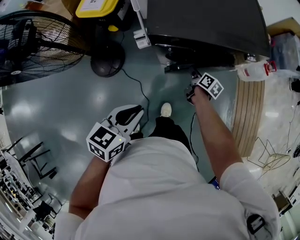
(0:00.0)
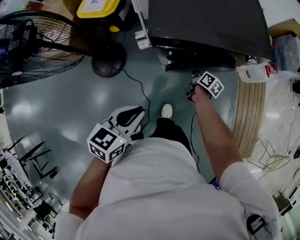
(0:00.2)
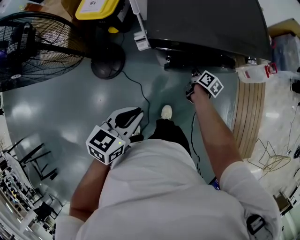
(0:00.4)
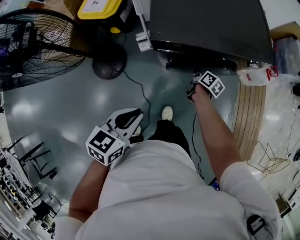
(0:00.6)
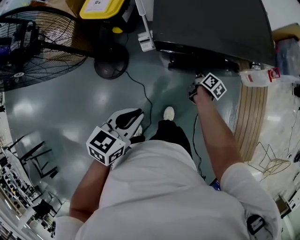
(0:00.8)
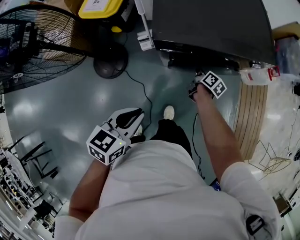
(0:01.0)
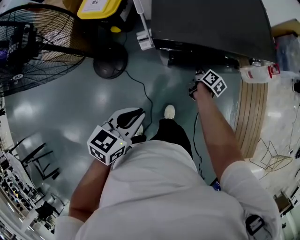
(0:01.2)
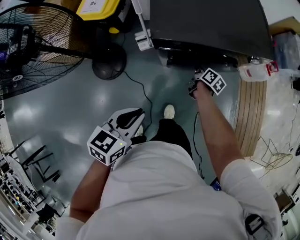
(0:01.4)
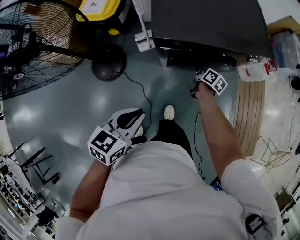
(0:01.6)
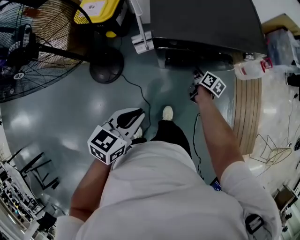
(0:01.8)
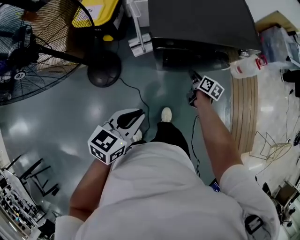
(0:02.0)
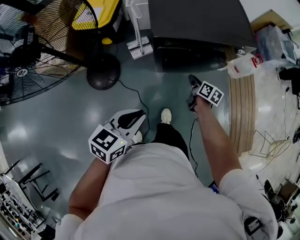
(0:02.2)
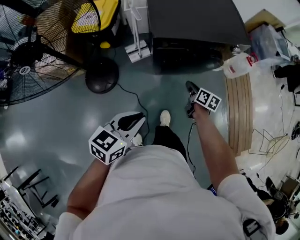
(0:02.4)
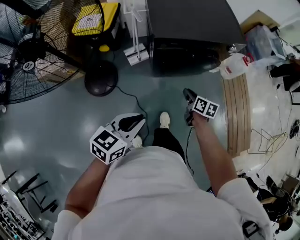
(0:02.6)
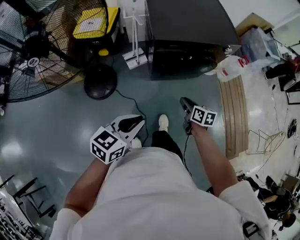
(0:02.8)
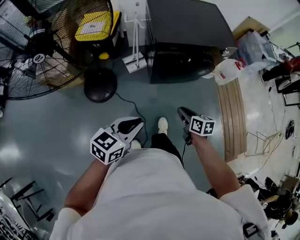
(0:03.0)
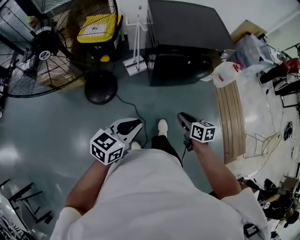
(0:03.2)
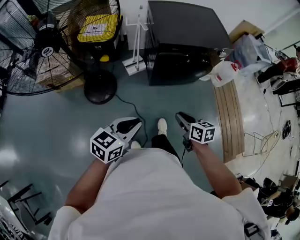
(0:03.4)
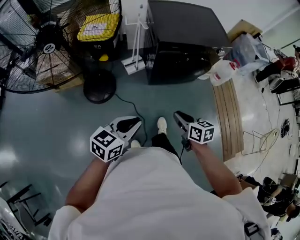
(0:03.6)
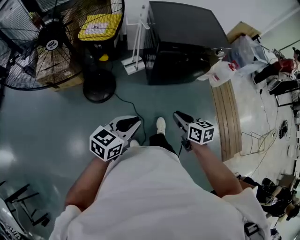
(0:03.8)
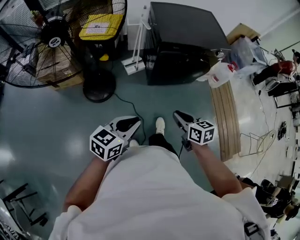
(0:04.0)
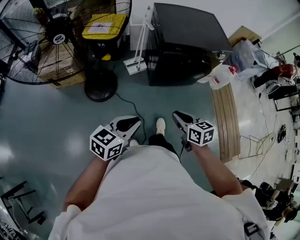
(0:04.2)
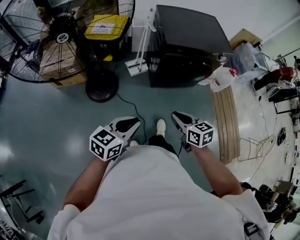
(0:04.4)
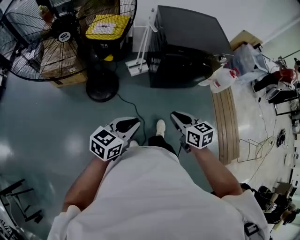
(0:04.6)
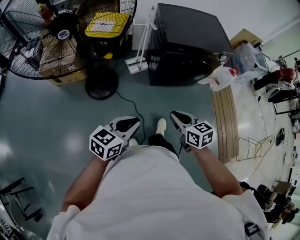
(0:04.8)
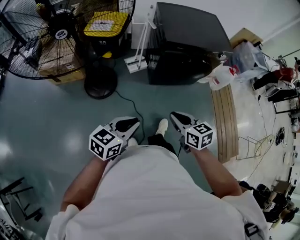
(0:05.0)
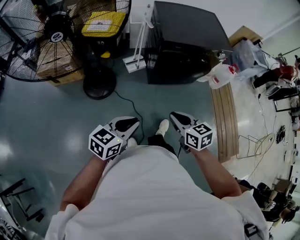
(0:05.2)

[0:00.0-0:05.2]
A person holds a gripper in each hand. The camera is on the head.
0:00.0 to 0:01.8: The grippers stay close to where they were, moving slightly.
0:01.8 to 0:03.4: The right gripper is displaced backward and upward by roughly 40 cm, and swivels about 30 degrees. The left gripper shifts some 20 cm backward.
0:03.4 to 0:05.2: The right gripper heads to the left, upward and backward, covering roughly 10 cm; the left gripper goes approximately 5 cm backward.

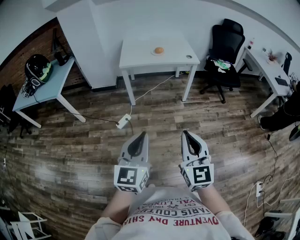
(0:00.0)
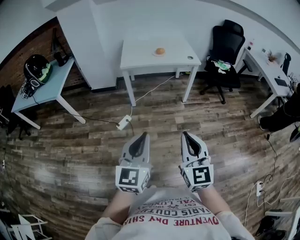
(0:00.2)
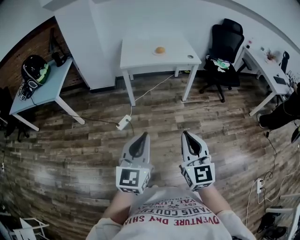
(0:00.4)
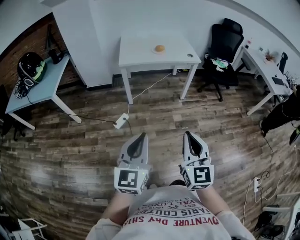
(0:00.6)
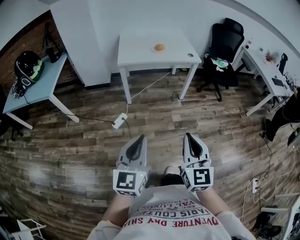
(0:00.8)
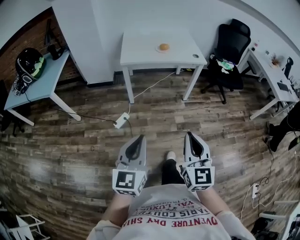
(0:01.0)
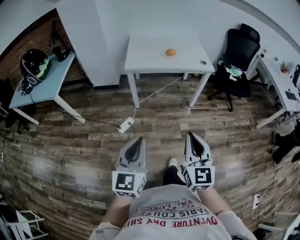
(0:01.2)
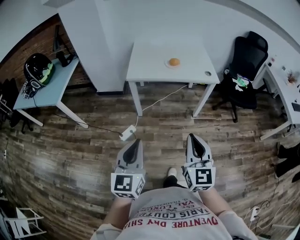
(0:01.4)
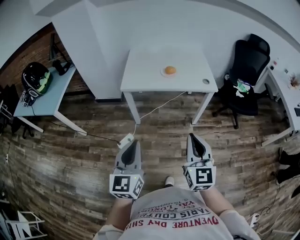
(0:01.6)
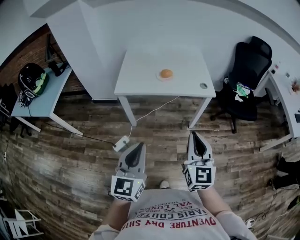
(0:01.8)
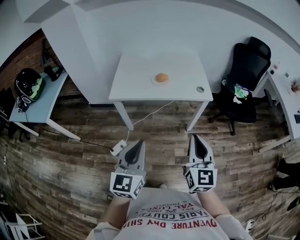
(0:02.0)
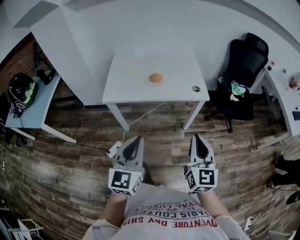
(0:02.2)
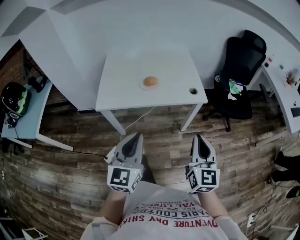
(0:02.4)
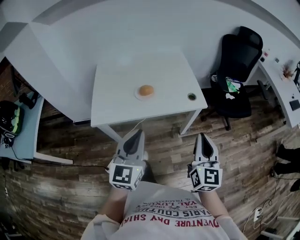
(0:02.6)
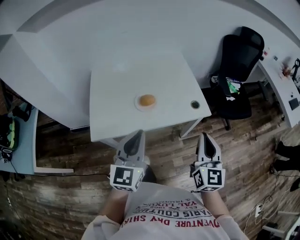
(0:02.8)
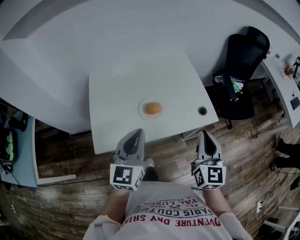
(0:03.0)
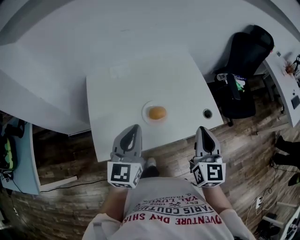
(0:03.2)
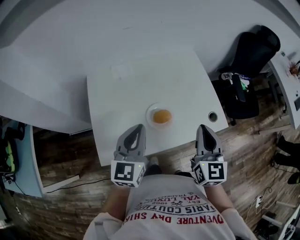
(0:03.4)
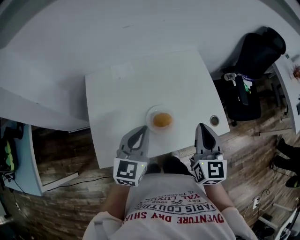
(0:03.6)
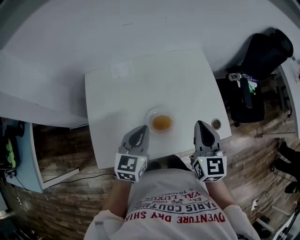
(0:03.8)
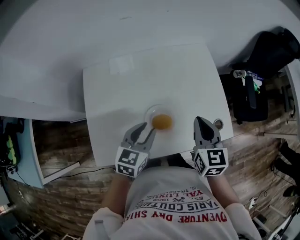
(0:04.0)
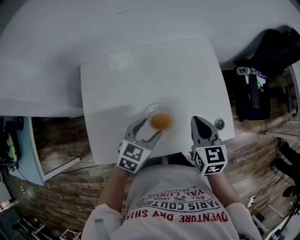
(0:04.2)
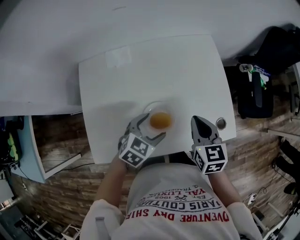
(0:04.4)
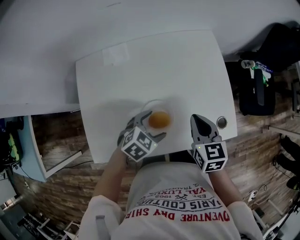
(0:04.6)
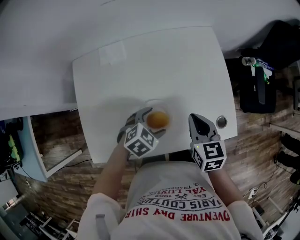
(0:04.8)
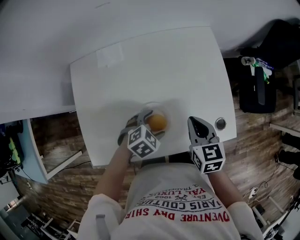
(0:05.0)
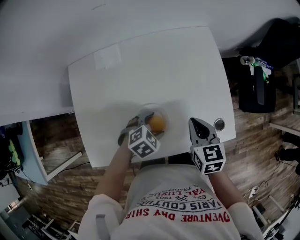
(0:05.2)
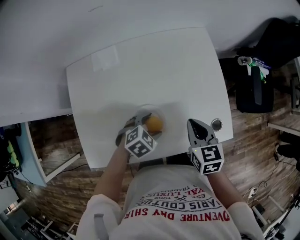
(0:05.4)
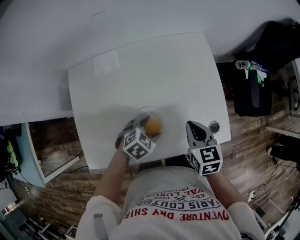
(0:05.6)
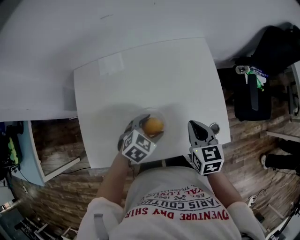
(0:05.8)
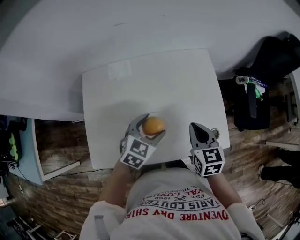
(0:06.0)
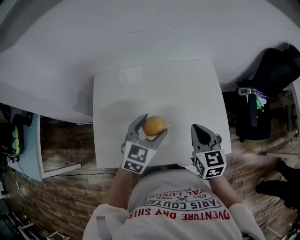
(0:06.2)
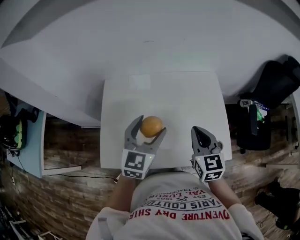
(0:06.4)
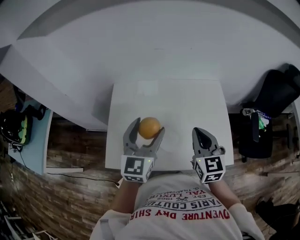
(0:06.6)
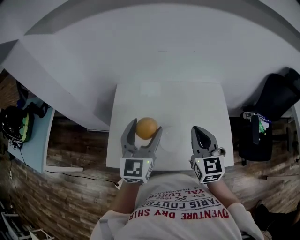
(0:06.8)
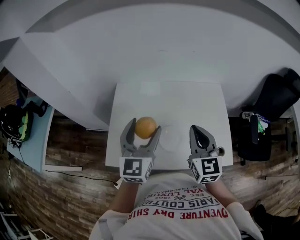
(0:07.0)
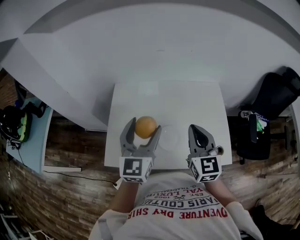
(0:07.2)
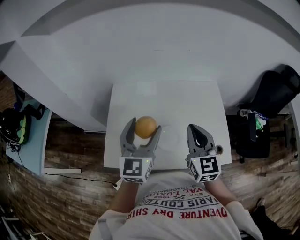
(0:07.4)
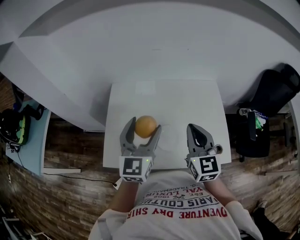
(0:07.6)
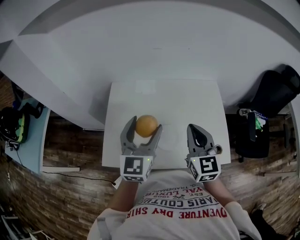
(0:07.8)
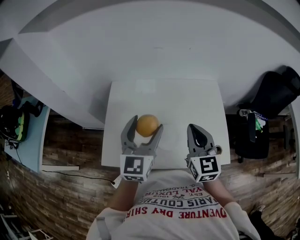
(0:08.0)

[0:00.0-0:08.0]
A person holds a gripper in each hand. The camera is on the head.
0:00.0 to 0:01.6: The two grippers go approximately 30 cm forward.
0:01.6 to 0:03.2: The two grippers travel together, forward, some 50 cm. The right gripper changes its angle by approximately 20 degrees. The left gripper turns by some 20 degrees.
0:03.2 to 0:04.8: The left gripper moves downward and forward, some 30 cm, angles its fingers downward, by some 50 degrees, and opens up. Meanwhile the right gripper is displaced forward and downward by about 25 cm, and turns by some 40 degrees.
0:04.8 to 0:06.4: The right gripper travels upward by approximately 10 cm, and turns by roughly 20 degrees, while the left gripper goes about 25 cm upward, and tips its fingers upward by some 40 degrees.
0:06.4 to 0:08.0: Both grippers travel together upward, about 5 cm.

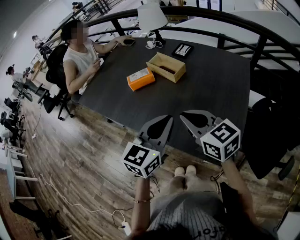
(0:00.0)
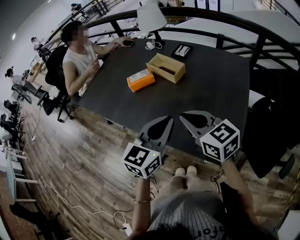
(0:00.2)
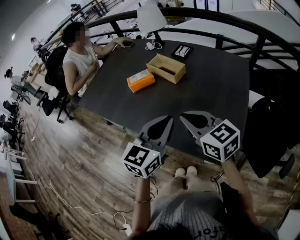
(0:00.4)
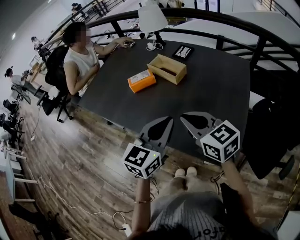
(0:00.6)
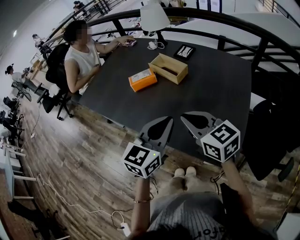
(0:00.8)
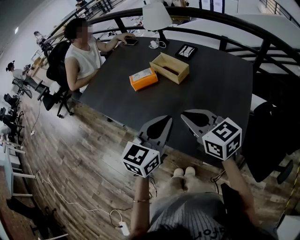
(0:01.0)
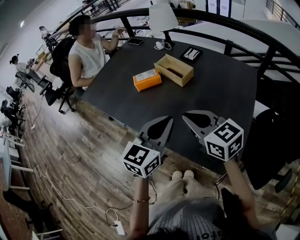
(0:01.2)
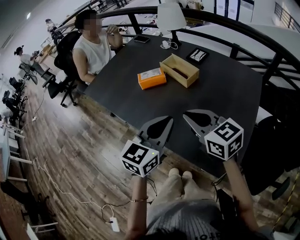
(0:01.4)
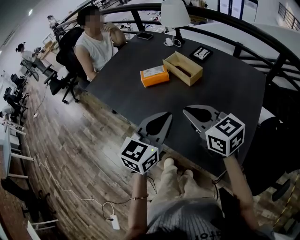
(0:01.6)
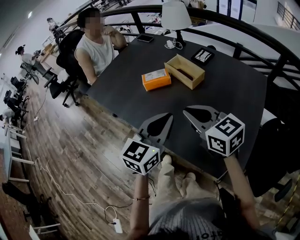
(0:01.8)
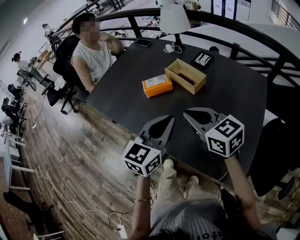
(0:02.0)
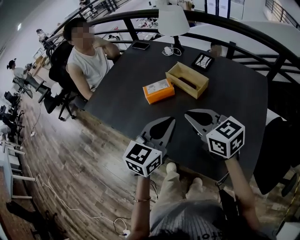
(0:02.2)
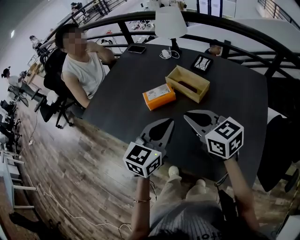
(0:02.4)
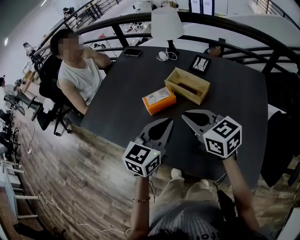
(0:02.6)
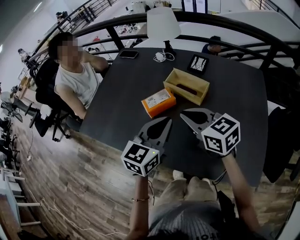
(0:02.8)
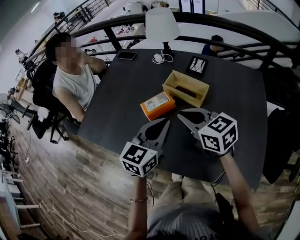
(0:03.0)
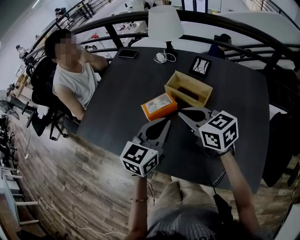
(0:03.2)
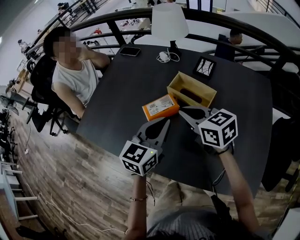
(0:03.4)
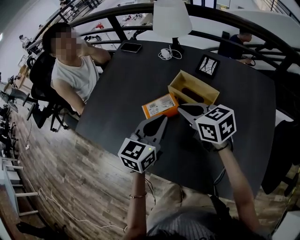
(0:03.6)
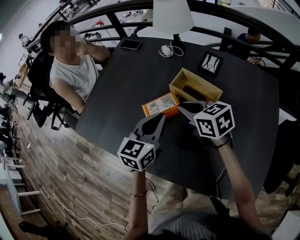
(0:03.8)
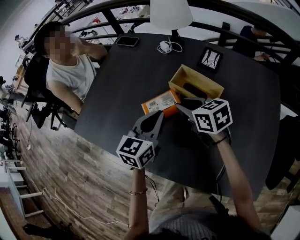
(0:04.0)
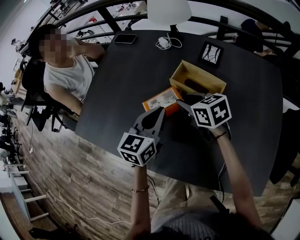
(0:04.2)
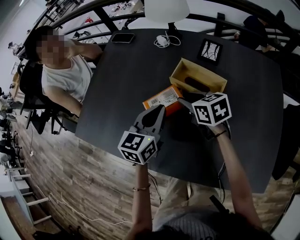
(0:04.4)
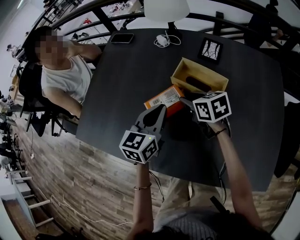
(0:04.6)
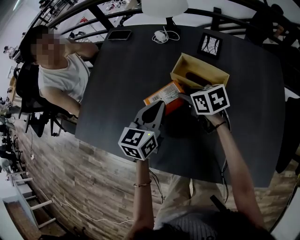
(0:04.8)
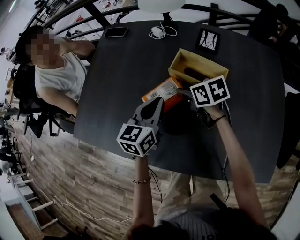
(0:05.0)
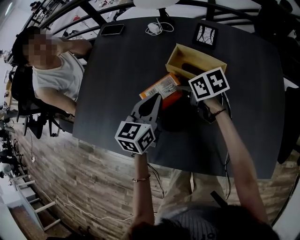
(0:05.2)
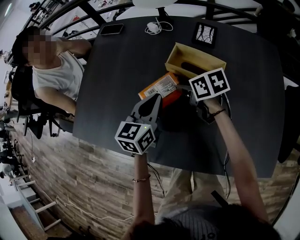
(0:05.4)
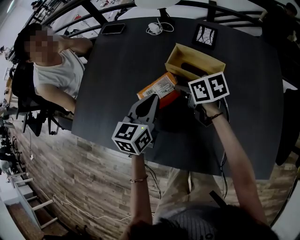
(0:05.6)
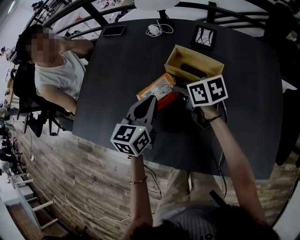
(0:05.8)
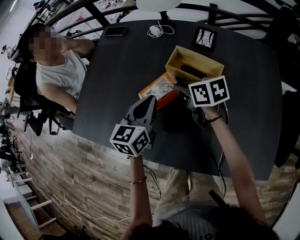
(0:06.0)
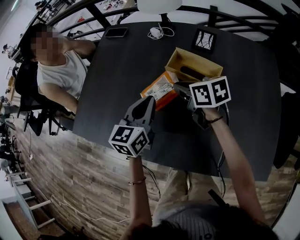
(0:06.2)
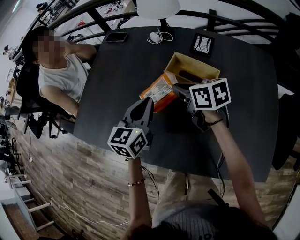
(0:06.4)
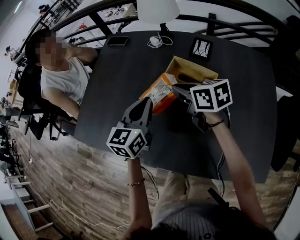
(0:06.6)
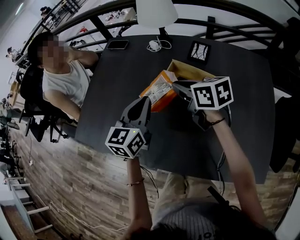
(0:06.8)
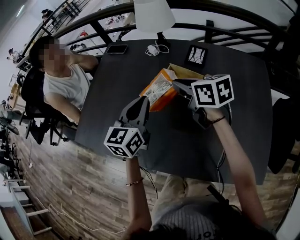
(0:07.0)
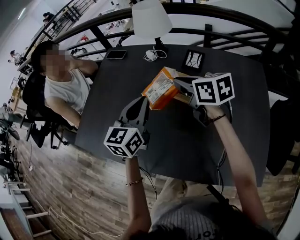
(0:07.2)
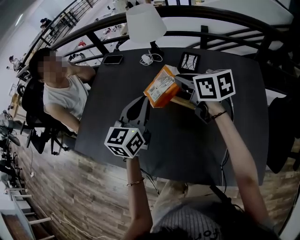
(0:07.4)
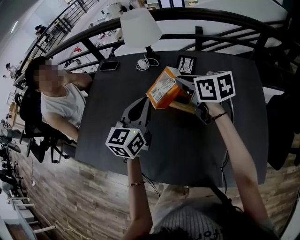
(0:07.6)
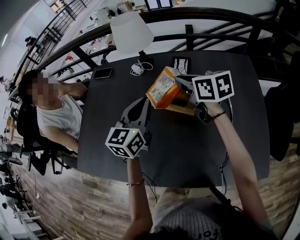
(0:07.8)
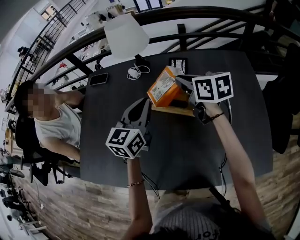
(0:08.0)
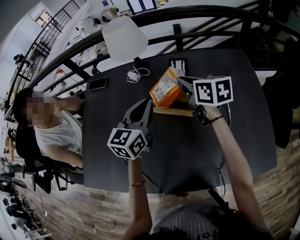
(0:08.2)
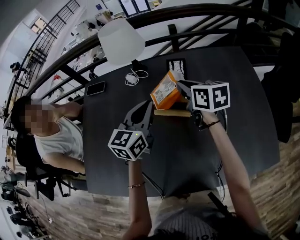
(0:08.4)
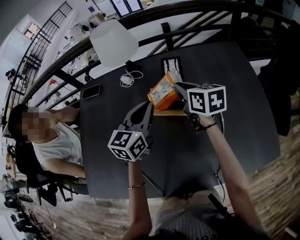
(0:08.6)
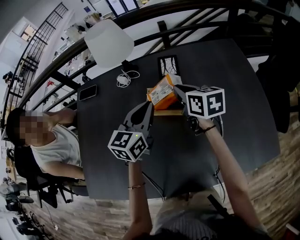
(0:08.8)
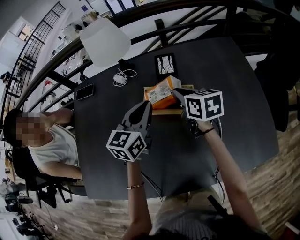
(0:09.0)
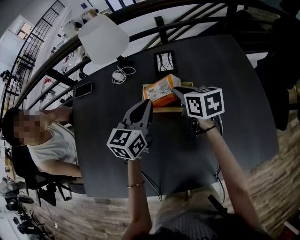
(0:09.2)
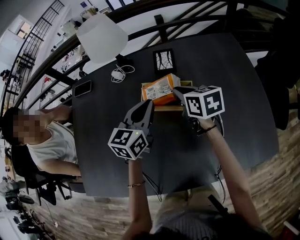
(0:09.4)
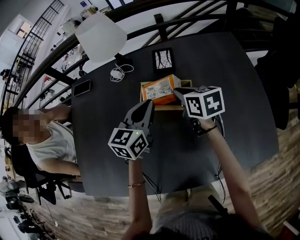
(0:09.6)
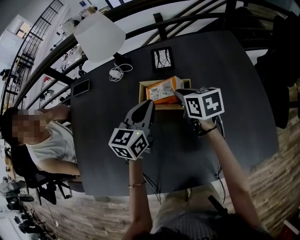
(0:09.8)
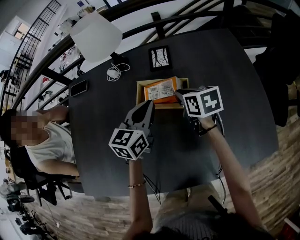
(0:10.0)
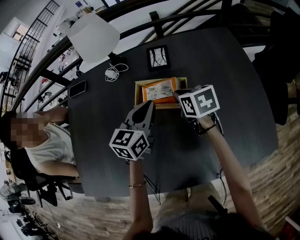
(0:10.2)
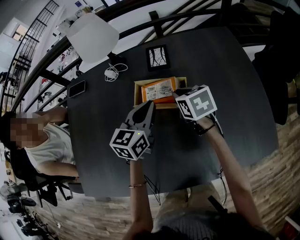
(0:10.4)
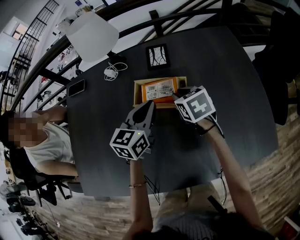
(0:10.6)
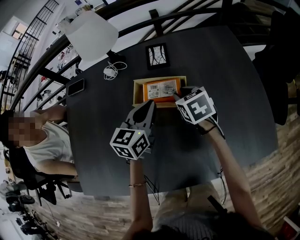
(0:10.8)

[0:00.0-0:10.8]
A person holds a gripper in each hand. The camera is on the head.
0:00.0 to 0:01.6: The right gripper ends up about 5 cm from where it was. Meanwhile the left gripper ends up roughly 5 cm from where it was.
0:01.6 to 0:03.0: Both grippers move forward and to the left, some 20 cm.
0:03.0 to 0:04.6: The right gripper is displaced downward and forward by roughly 20 cm, turns by roughly 30 degrees, and opens, while the left gripper is displaced forward and downward by some 15 cm.
0:04.6 to 0:06.2: The right gripper closes.
0:06.2 to 0:07.8: The left gripper goes some 15 cm upward, to the right and forward. The right gripper travels to the right, upward and forward by roughly 15 cm.
0:07.8 to 0:09.2: The right gripper is displaced downward by some 10 cm, and rotates some 20 degrees, while the left gripper shifts roughly 5 cm downward.
0:09.2 to 0:10.8: The left gripper ends up some 5 cm from where it was; the right gripper is displaced downward by roughly 5 cm, and rotates roughly 20 degrees.
